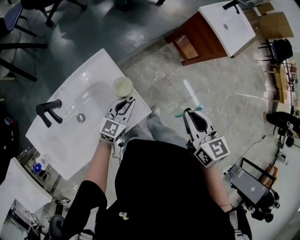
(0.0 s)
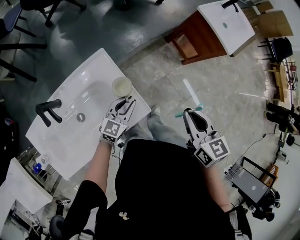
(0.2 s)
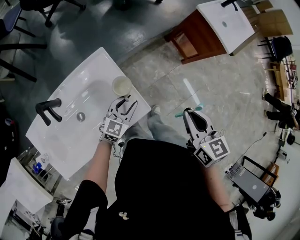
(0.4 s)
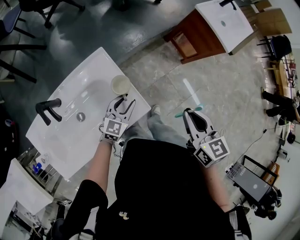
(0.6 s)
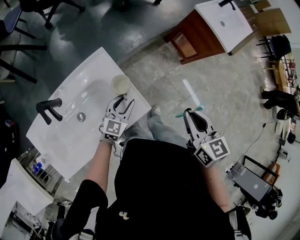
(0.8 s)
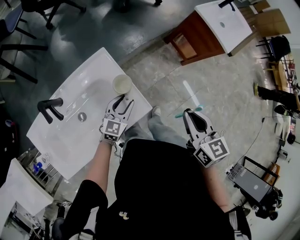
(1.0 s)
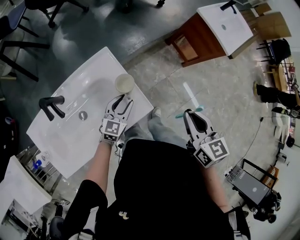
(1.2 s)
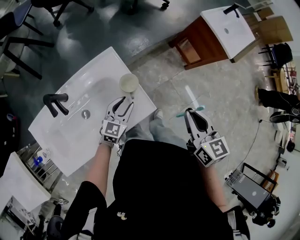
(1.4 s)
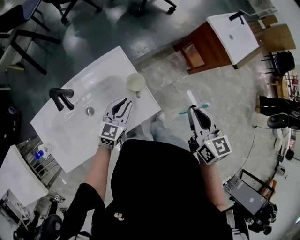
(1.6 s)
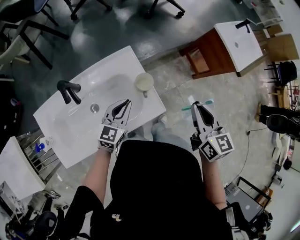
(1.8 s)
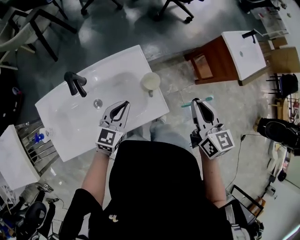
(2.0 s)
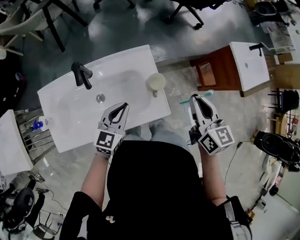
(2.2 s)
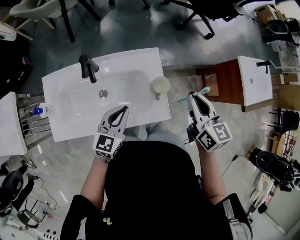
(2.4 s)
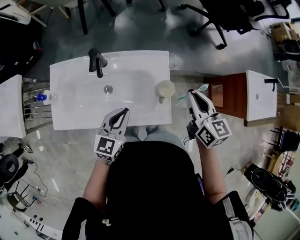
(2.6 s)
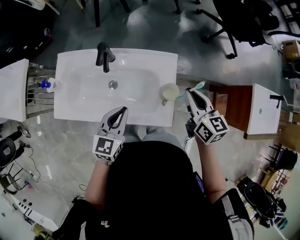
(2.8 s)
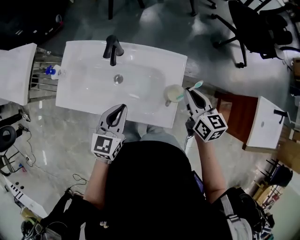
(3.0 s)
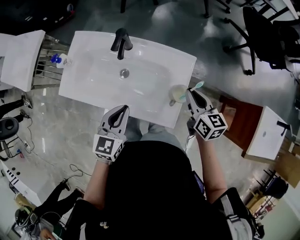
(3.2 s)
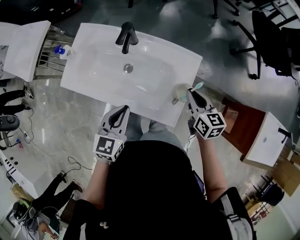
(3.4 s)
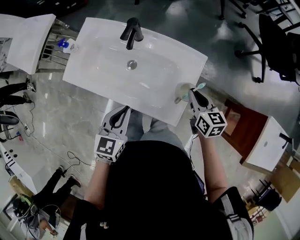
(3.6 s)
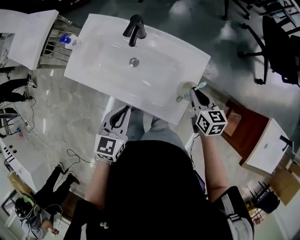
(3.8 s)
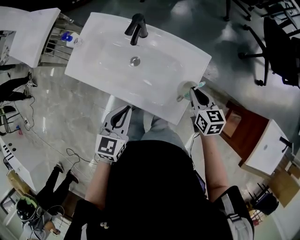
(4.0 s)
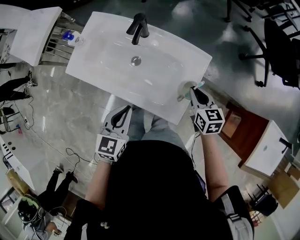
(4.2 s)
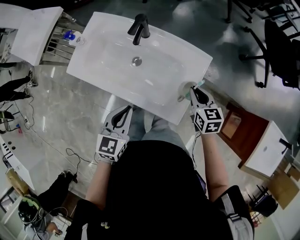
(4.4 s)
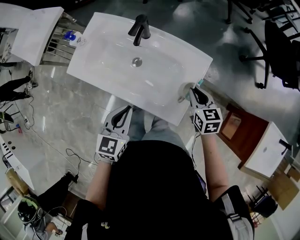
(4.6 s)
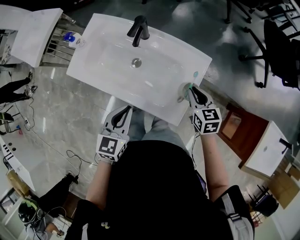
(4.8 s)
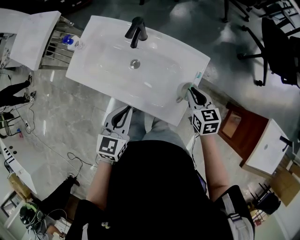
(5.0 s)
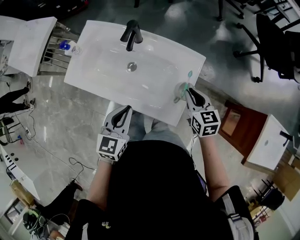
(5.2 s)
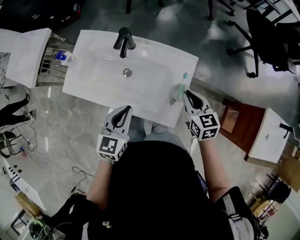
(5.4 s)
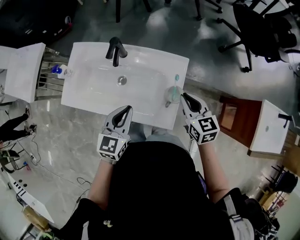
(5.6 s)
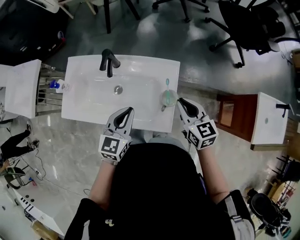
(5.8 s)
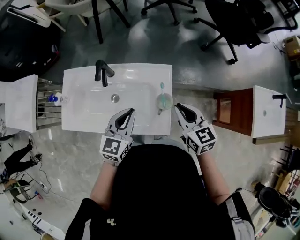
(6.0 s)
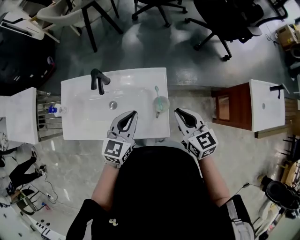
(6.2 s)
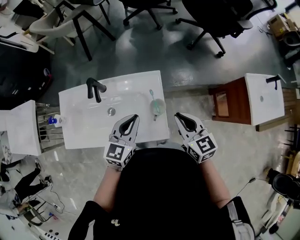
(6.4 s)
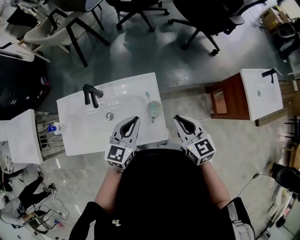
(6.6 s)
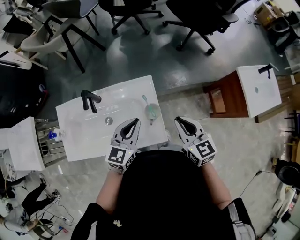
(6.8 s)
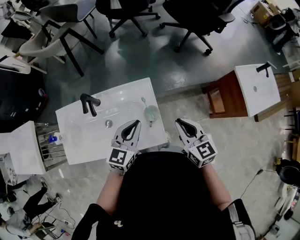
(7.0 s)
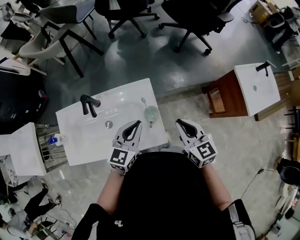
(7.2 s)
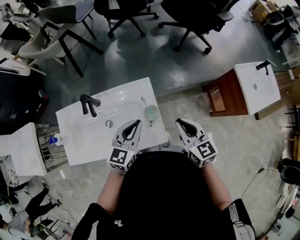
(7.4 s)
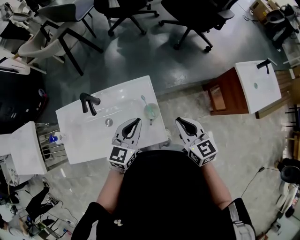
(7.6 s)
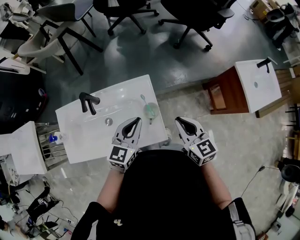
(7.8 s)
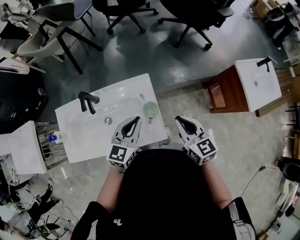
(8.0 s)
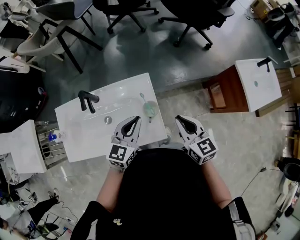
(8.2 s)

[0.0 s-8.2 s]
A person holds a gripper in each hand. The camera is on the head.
0.0 to 1.6 s: The left gripper travels to the left by about 5 cm.
1.6 to 3.2 s: The left gripper ends up roughly 15 cm from where it was, and rotates about 50 degrees; the right gripper moves approximately 25 cm, and rotates approximately 50 degrees.
3.2 to 5.0 s: The right gripper heads downward, covering about 5 cm.
5.0 to 6.6 s: The right gripper moves upward, roughly 15 cm, and changes its angle by some 30 degrees. Meanwhile the left gripper shifts by roughly 20 cm, and rotates roughly 40 degrees.
6.6 to 8.2 s: The grippers stay close to where they were, moving slightly.

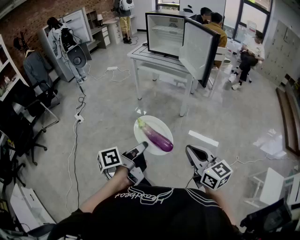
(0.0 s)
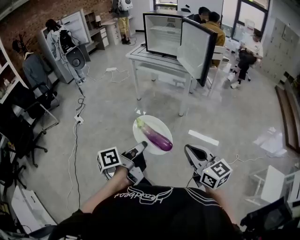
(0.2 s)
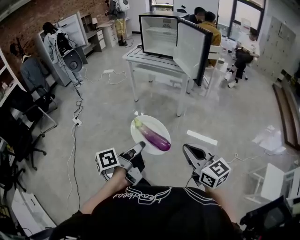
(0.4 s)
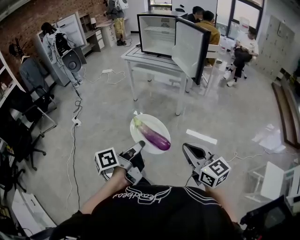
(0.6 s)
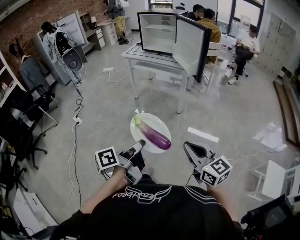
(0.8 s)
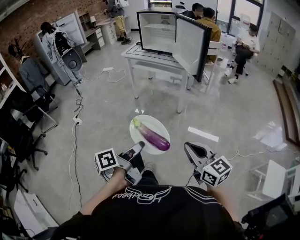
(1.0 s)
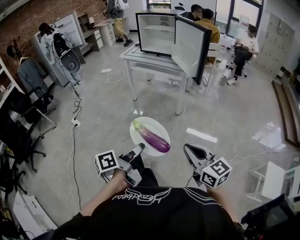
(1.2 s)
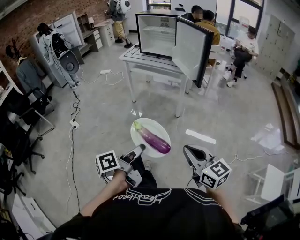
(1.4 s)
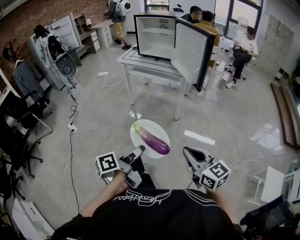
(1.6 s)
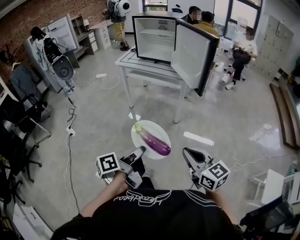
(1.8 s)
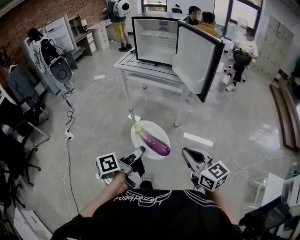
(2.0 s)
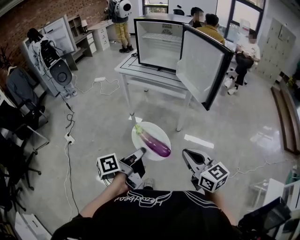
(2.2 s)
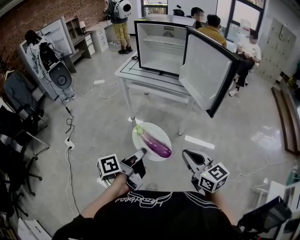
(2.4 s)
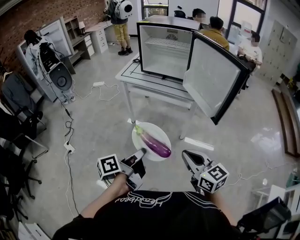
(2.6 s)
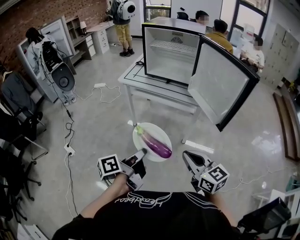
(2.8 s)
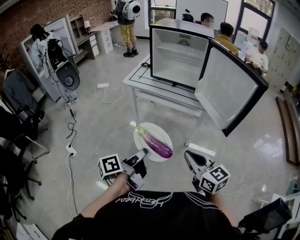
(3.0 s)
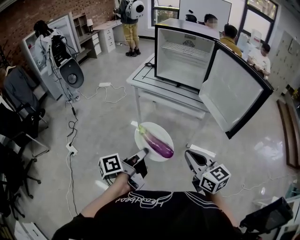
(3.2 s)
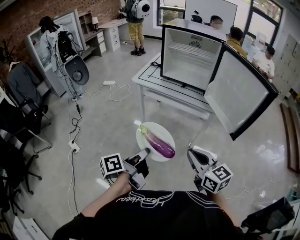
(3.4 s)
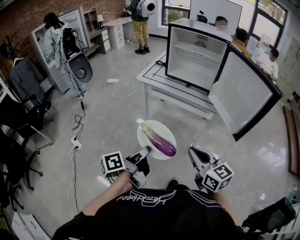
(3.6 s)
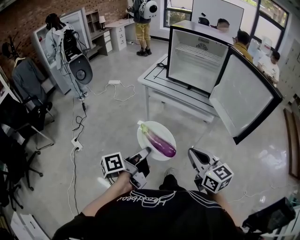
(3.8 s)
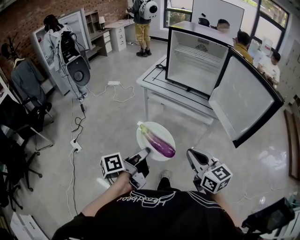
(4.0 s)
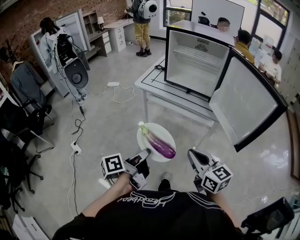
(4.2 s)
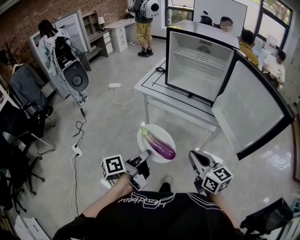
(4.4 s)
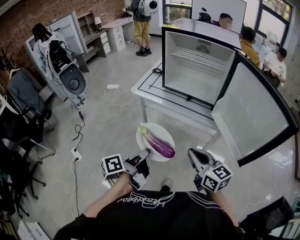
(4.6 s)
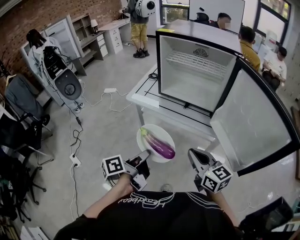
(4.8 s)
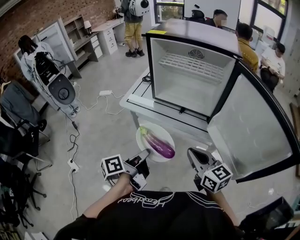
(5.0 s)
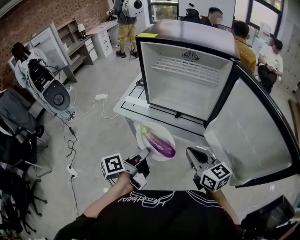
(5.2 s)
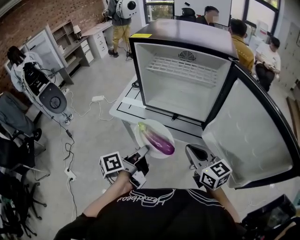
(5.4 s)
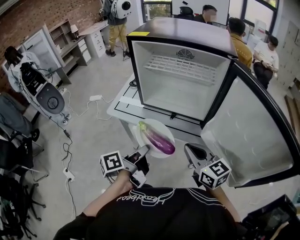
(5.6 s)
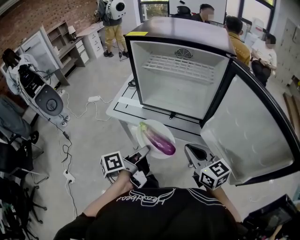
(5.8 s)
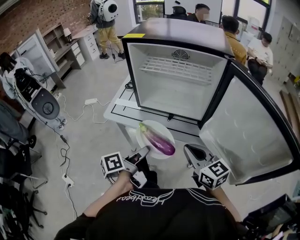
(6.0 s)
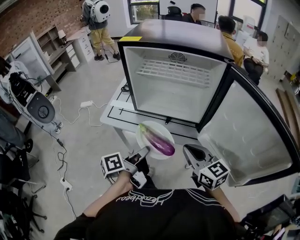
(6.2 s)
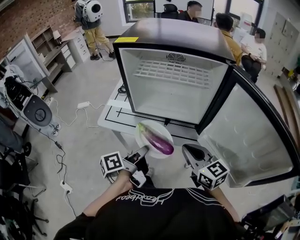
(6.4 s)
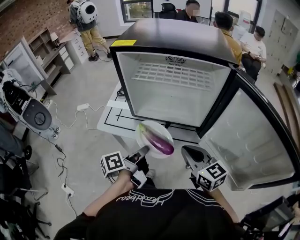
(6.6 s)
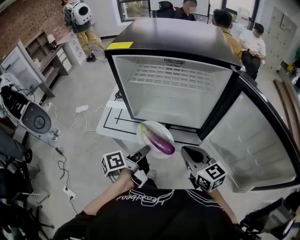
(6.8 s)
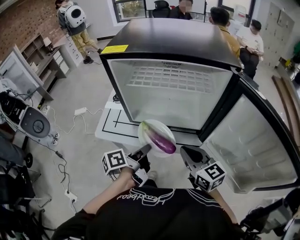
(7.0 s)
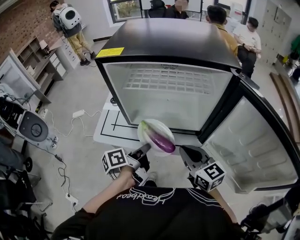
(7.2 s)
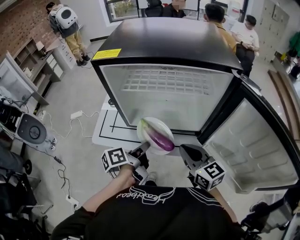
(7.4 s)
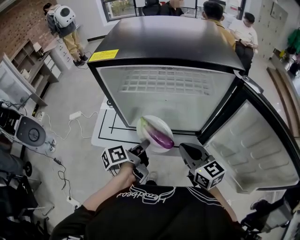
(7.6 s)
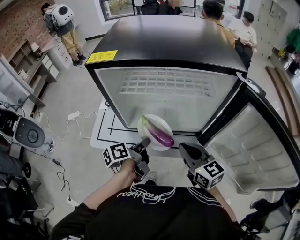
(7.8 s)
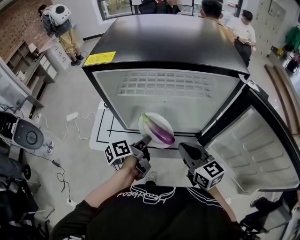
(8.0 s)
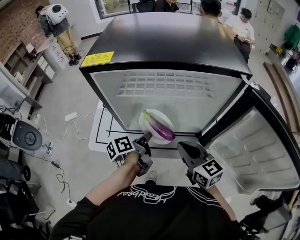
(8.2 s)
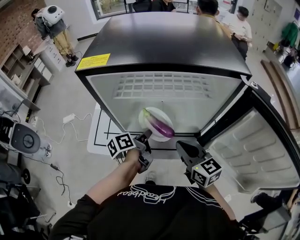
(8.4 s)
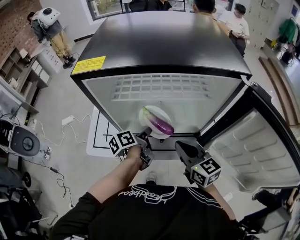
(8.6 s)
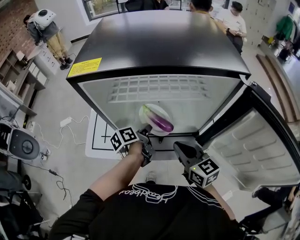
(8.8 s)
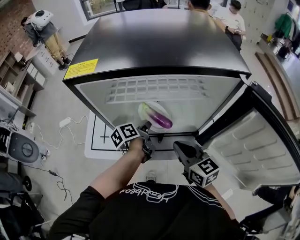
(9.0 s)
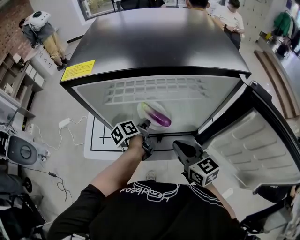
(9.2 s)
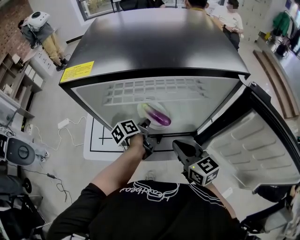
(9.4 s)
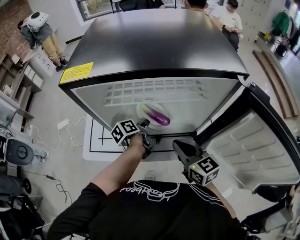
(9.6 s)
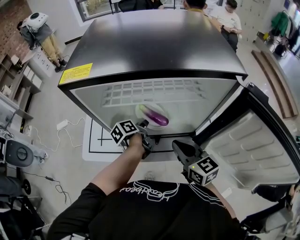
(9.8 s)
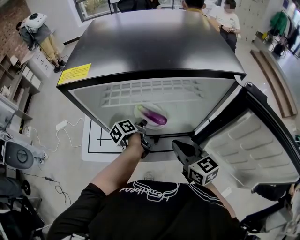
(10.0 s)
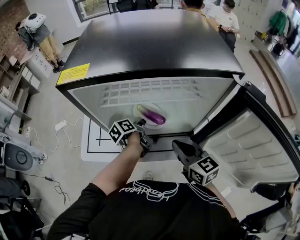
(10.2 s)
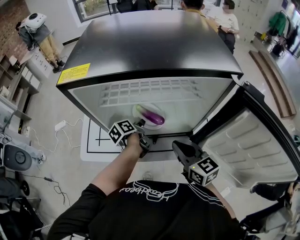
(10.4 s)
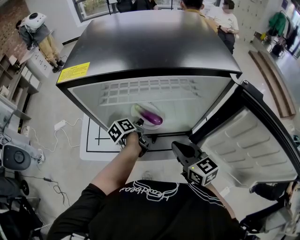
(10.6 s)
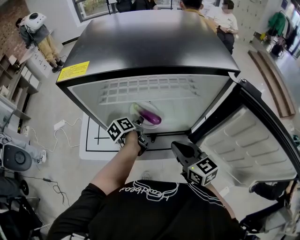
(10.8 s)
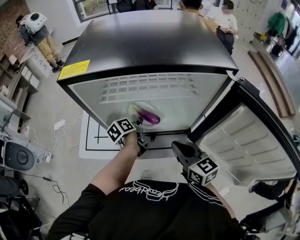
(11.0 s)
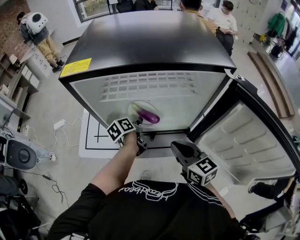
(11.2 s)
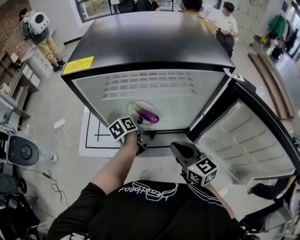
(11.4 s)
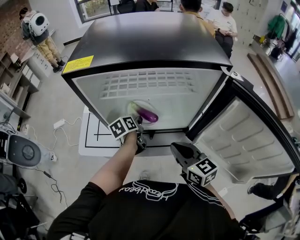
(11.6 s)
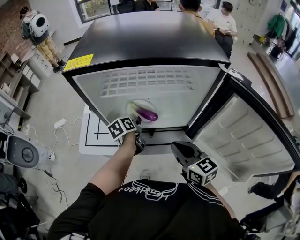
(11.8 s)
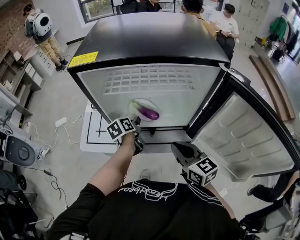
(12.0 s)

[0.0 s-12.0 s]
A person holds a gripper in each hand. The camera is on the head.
0.0 to 1.6 s: Both grippers move forward, roughly 5 cm.
1.6 to 3.0 s: The left gripper shifts approximately 35 cm forward; the right gripper is displaced forward and to the left by approximately 40 cm.
3.0 to 4.4 s: The two grippers go some 10 cm forward.
4.4 to 6.0 s: Both grippers travel together forward, roughly 25 cm.
6.0 to 7.6 s: The two grippers go some 15 cm forward.
7.6 to 9.0 s: The left gripper goes roughly 15 cm forward and downward. Meanwhile the right gripper changes place by roughly 5 cm.
9.0 to 10.4 s: The grippers stay close to where they were, moving slightly.
10.4 to 12.0 s: The right gripper travels backward by some 5 cm; the left gripper opens its fingers.

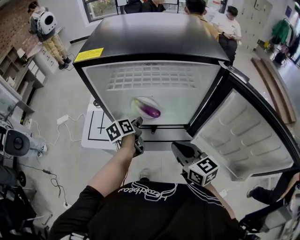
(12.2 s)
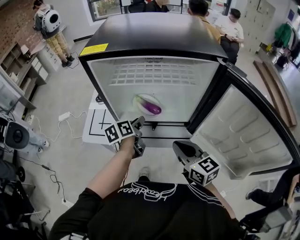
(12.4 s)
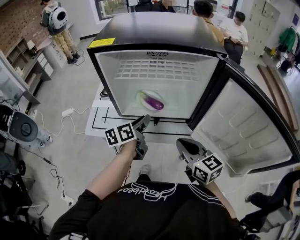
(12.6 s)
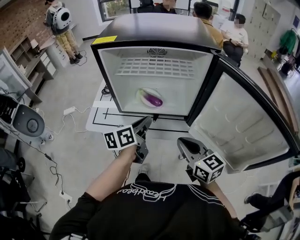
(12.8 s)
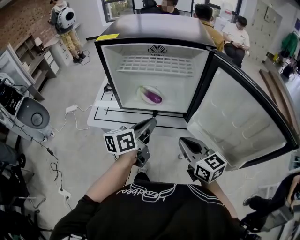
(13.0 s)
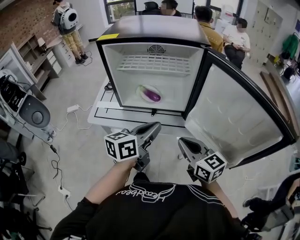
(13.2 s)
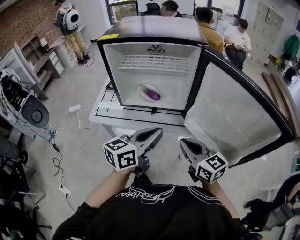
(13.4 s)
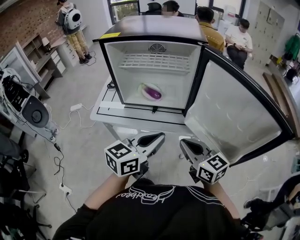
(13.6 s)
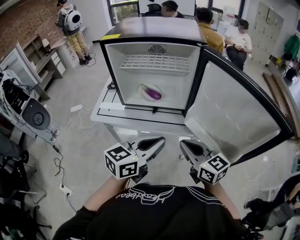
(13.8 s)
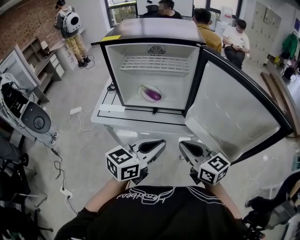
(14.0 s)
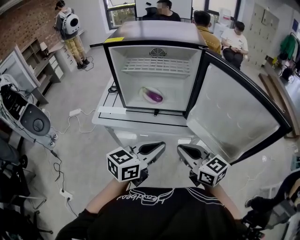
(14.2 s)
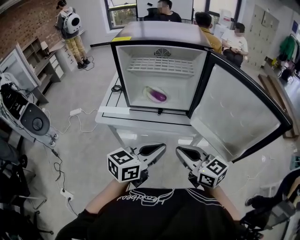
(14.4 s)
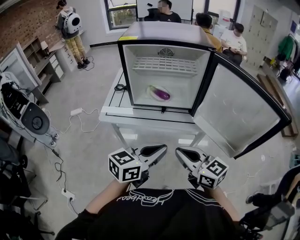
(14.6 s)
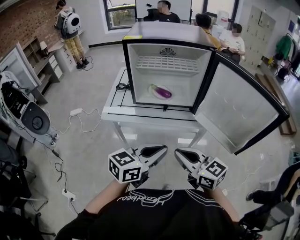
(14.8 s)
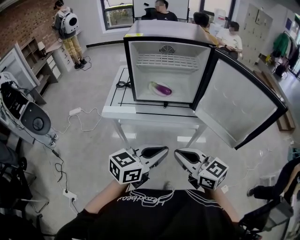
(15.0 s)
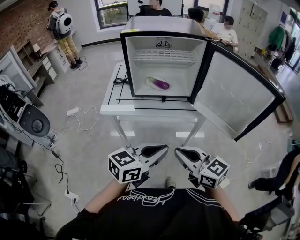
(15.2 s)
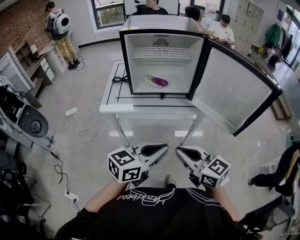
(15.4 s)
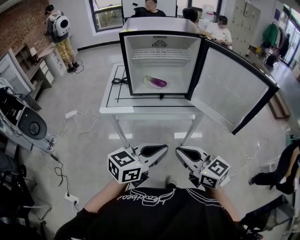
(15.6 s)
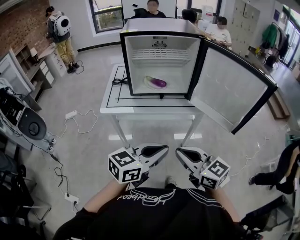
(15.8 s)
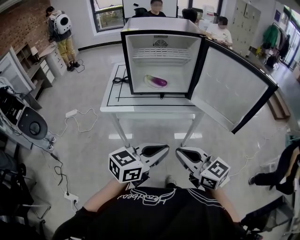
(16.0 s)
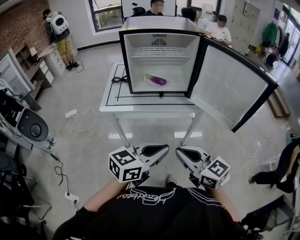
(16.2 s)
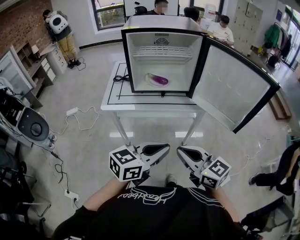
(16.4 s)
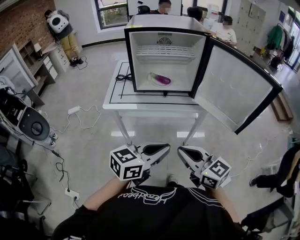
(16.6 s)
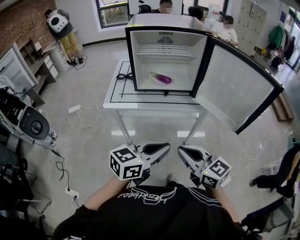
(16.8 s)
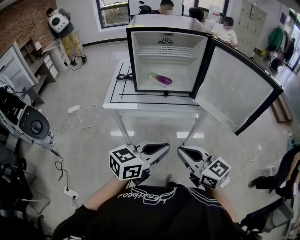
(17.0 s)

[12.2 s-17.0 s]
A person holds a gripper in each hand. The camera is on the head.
12.2 to 13.8 s: The right gripper shifts approximately 15 cm backward and to the right. The left gripper travels backward, upward and to the right by some 40 cm, turns by roughly 50 degrees, and closes up.
13.8 to 15.4 s: The two grippers go some 20 cm backward and to the left.
15.4 to 17.0 s: There are only small adjustments of the grippers.
